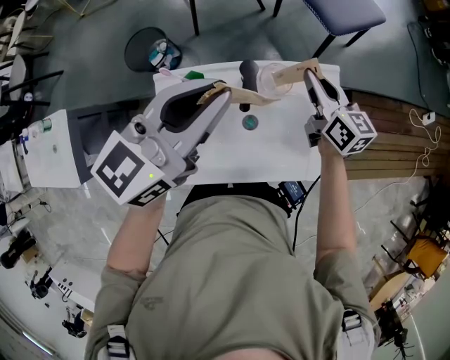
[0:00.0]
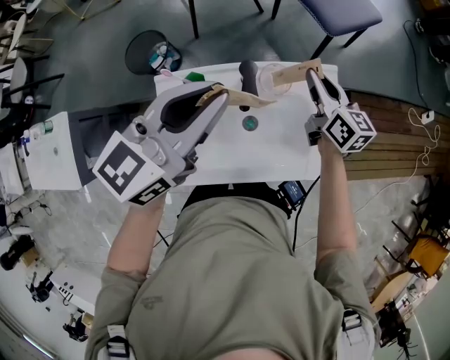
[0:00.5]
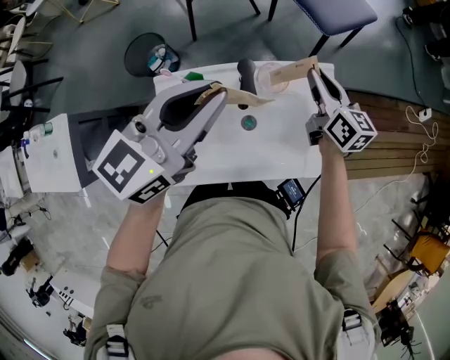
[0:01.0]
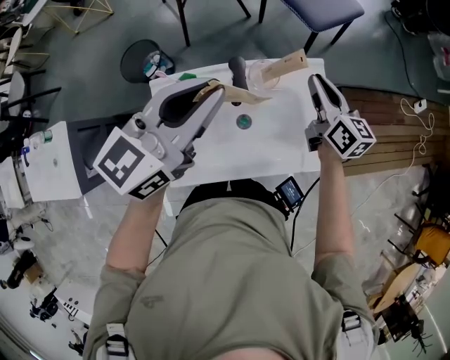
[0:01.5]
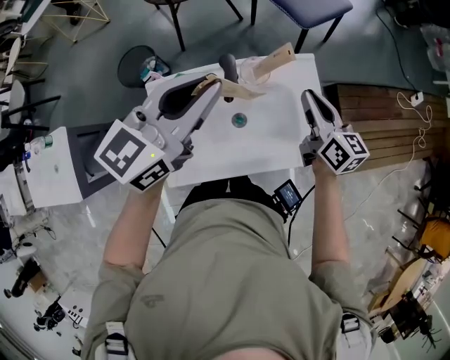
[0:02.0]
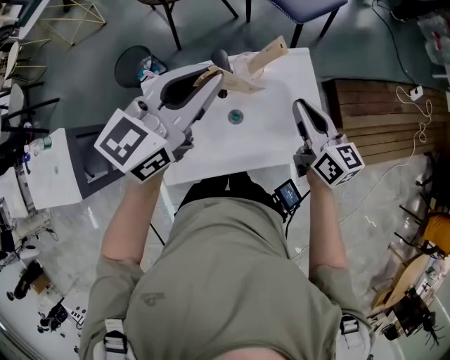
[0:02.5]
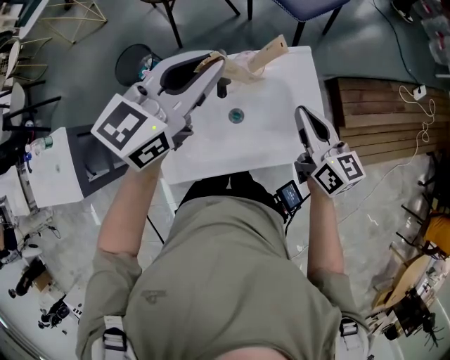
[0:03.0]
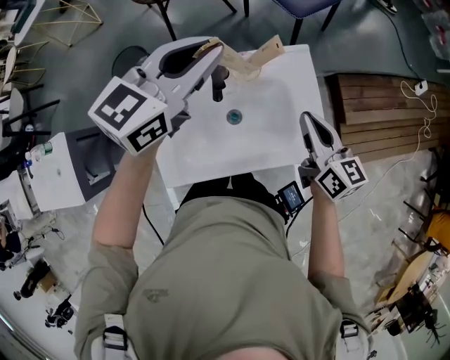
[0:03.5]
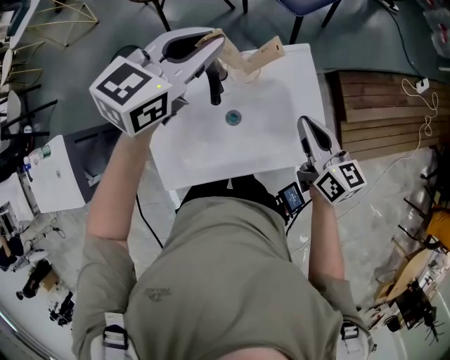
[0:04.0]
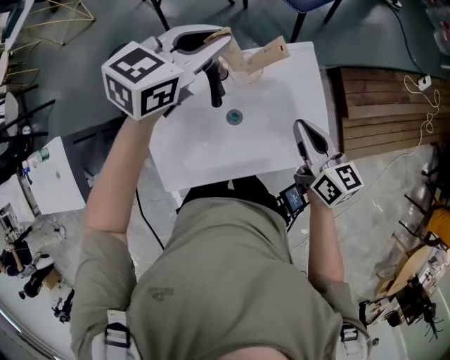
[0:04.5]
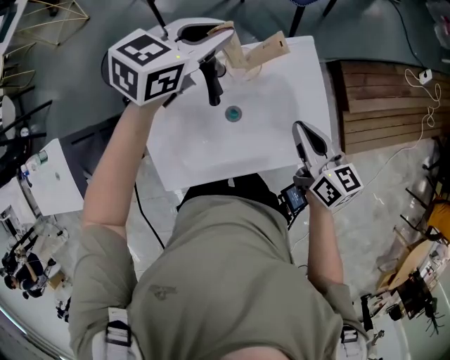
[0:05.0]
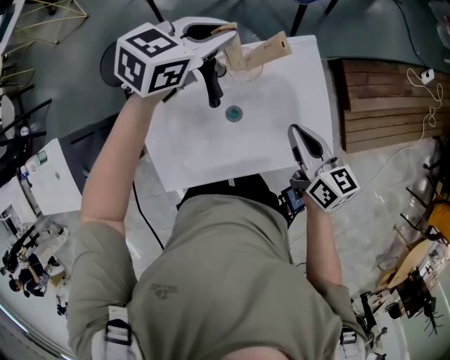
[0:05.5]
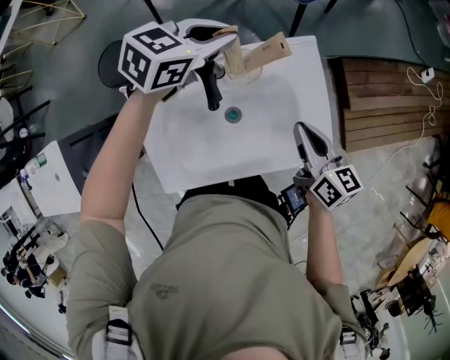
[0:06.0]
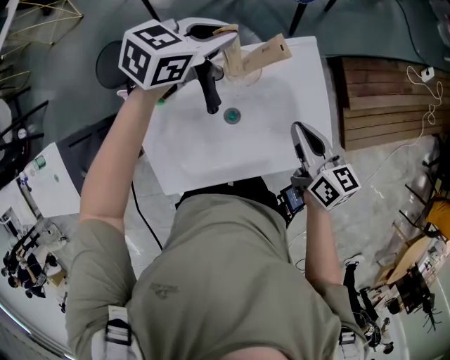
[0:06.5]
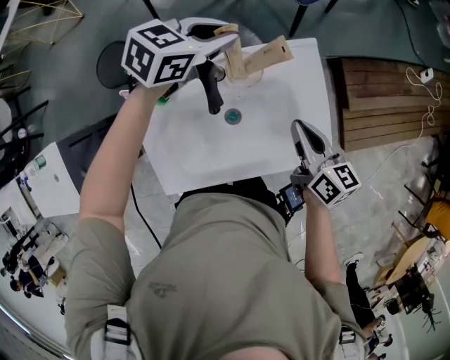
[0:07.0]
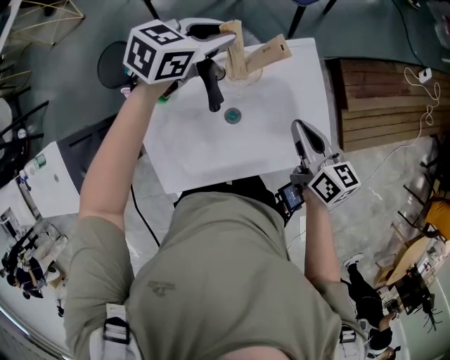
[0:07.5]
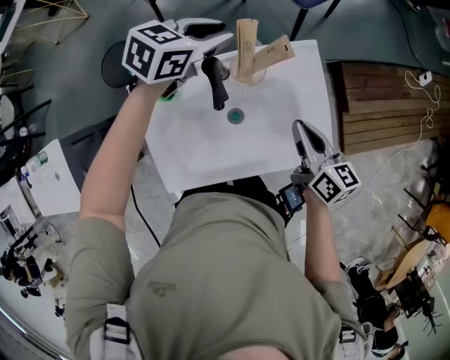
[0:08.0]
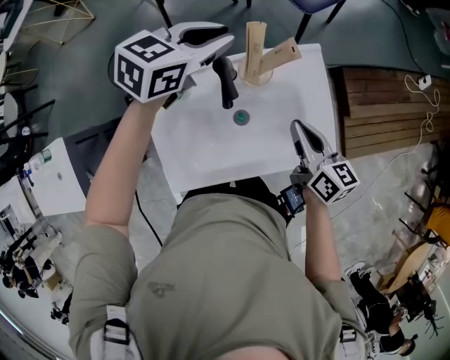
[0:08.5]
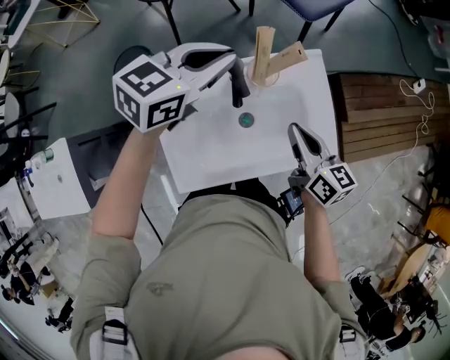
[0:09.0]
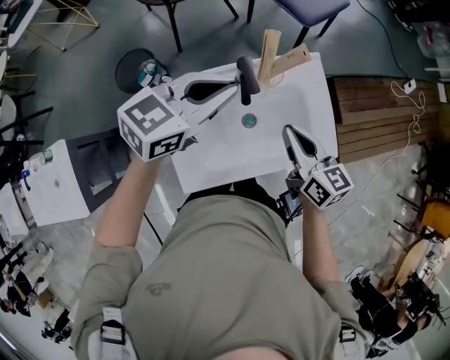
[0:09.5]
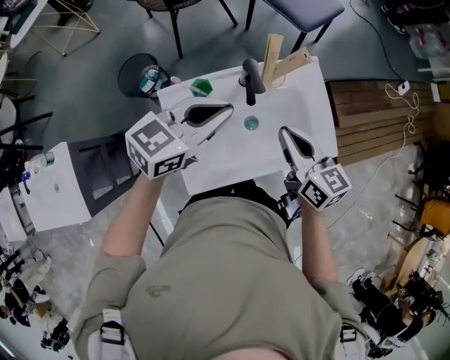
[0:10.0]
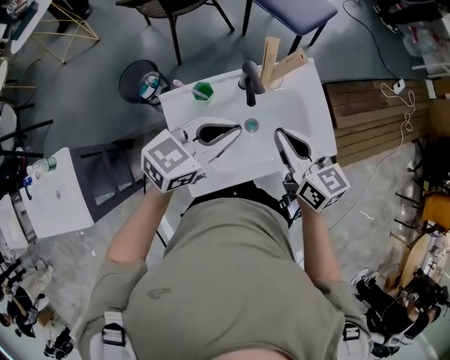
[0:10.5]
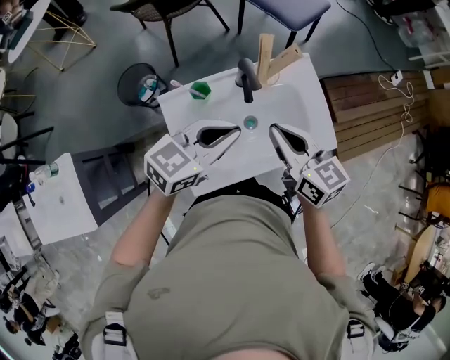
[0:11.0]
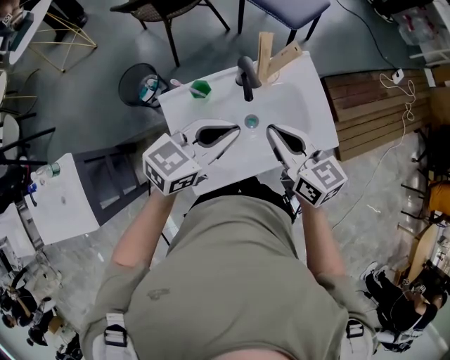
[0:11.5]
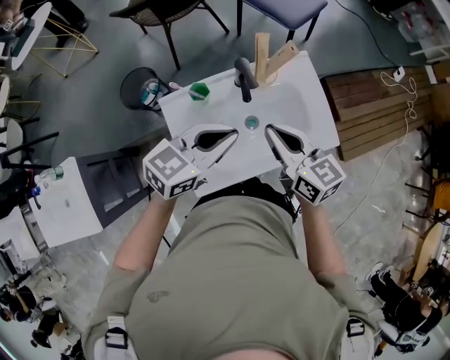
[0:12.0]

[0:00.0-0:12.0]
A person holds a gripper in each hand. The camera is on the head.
0:00.0 to 0:02.0: The right gripper heads backward and to the right, covering approximately 10 cm.
0:02.0 to 0:04.0: The right gripper moves backward, roughly 5 cm; the left gripper goes roughly 10 cm forward.
0:04.0 to 0:06.0: The left gripper travels downward and forward by about 15 cm, while the right gripper moves downward, approximately 5 cm.
0:06.0 to 0:08.0: The grippers stay close to where they were, moving slightly.
0:08.0 to 0:10.0: The left gripper travels backward and upward by roughly 25 cm, while the right gripper moves to the left, upward and backward, roughly 15 cm.
0:10.0 to 0:12.0: The left gripper moves backward, approximately 5 cm.

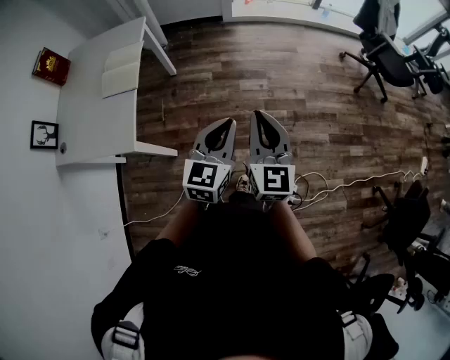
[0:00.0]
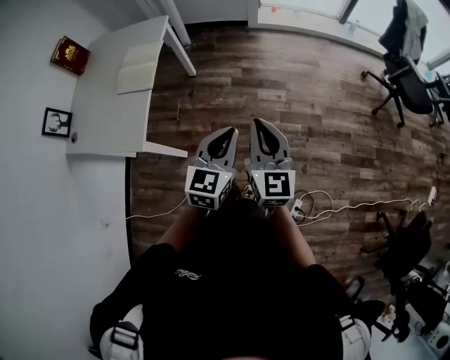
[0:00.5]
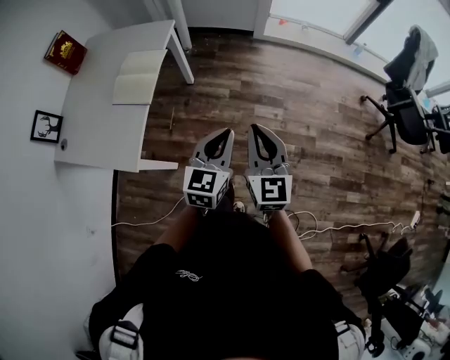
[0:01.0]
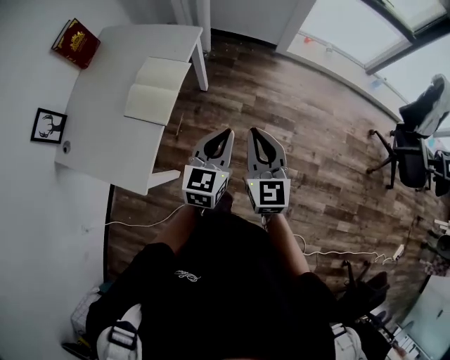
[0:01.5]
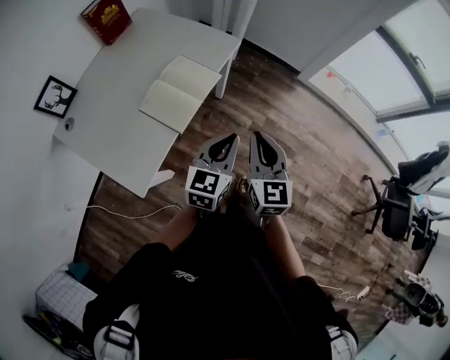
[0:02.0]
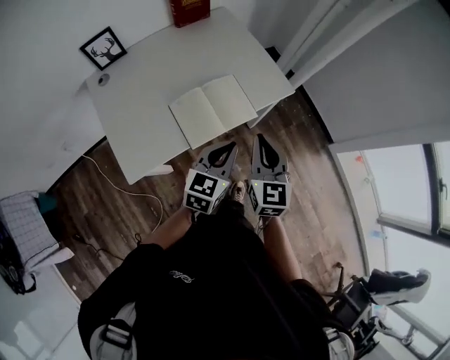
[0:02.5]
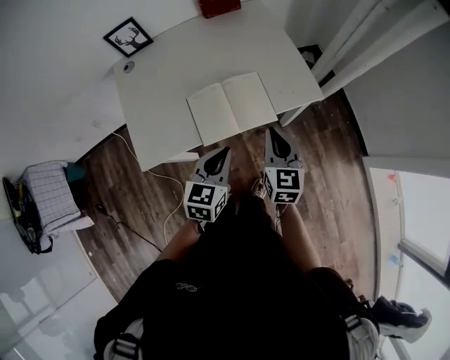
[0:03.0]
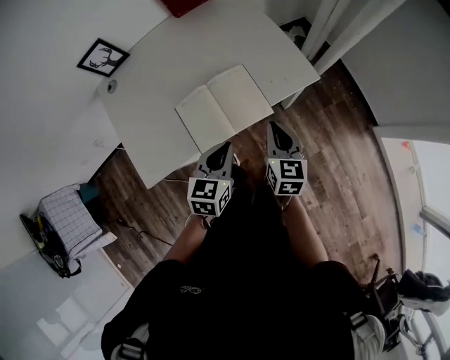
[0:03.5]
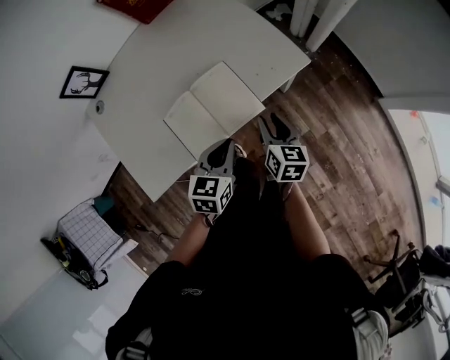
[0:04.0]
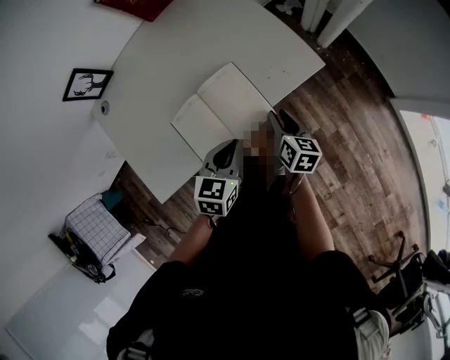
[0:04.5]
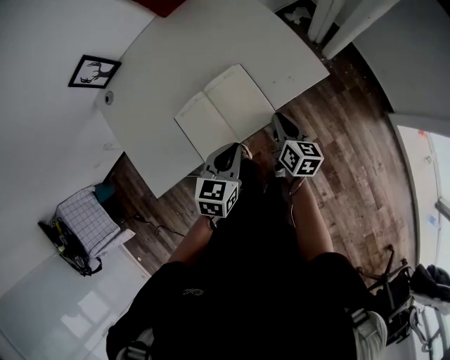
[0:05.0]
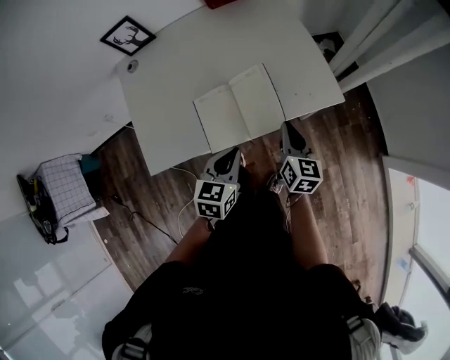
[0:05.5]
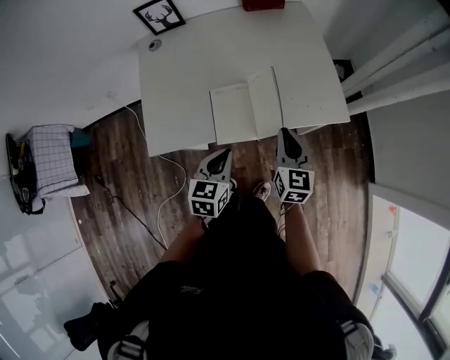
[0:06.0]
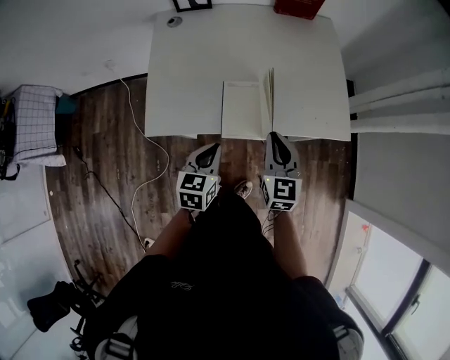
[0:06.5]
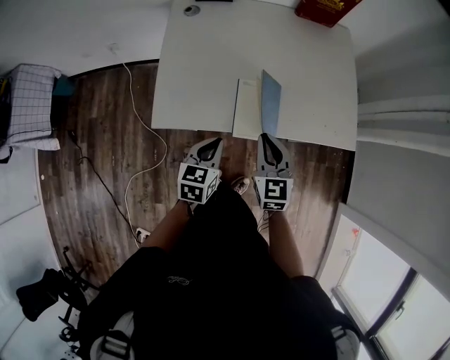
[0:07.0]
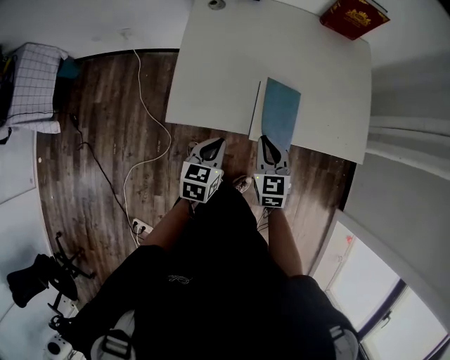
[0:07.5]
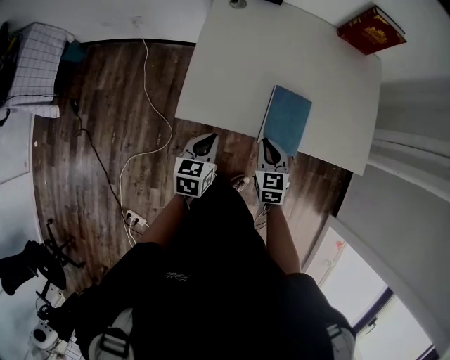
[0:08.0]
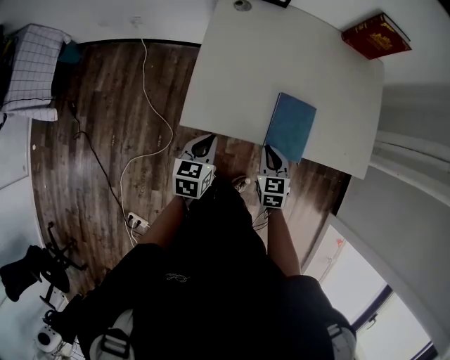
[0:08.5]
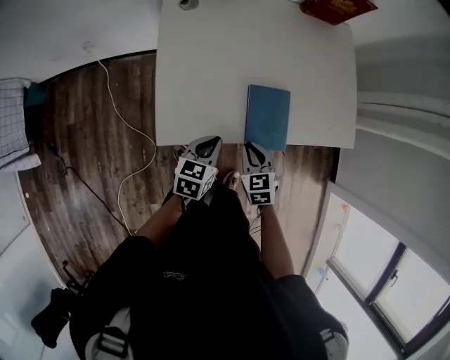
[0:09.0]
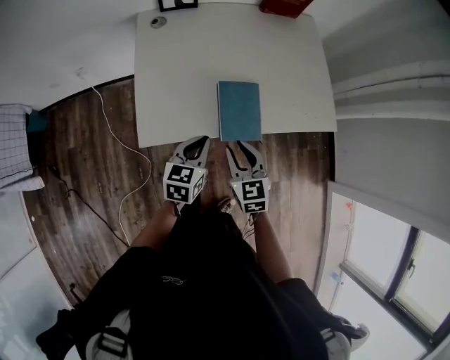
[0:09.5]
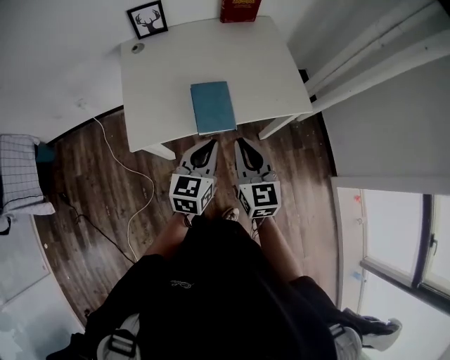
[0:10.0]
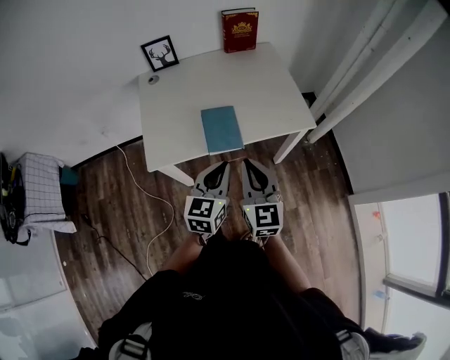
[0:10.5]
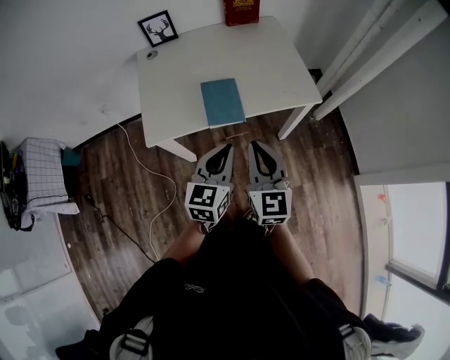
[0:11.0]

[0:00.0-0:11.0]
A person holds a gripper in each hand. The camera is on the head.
0:00.0 to 0:02.0: The right gripper moves some 40 cm, and swivels roughly 30 degrees, while the left gripper changes place by approximately 40 cm, and rotates some 30 degrees.
0:02.0 to 0:03.5: The right gripper ends up about 30 cm from where it was, and rotates approximately 30 degrees. Meanwhile the left gripper shifts by about 20 cm, and changes its angle by roughly 40 degrees.
0:03.5 to 0:05.5: The right gripper goes downward and returns, about 10 cm each way, and opens, then closes once more.
0:05.5 to 0:07.5: Both grippers move to the left, some 20 cm. The left gripper changes its angle by about 30 degrees. The right gripper rolls counterclockwise, seen from behind, by about 40 degrees.
0:07.5 to 0:09.0: The left gripper moves forward, some 5 cm, and moves some 10 cm to the left and comes back, while the right gripper heads downward, covering some 5 cm.
0:09.0 to 0:11.0: The right gripper moves upward, to the right and backward, roughly 35 cm, points its fingers about 40 degrees further upward, and opens and closes again. Meanwhile the left gripper moves to the right, upward and backward, about 30 cm, and changes its angle by roughly 30 degrees.

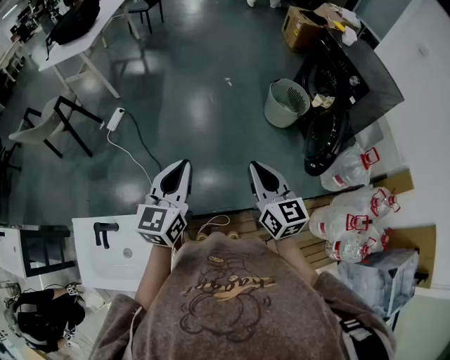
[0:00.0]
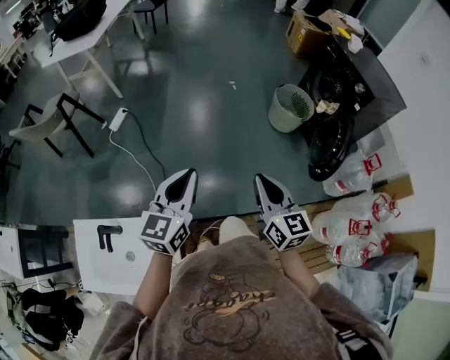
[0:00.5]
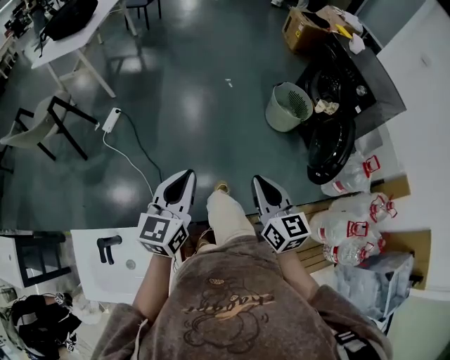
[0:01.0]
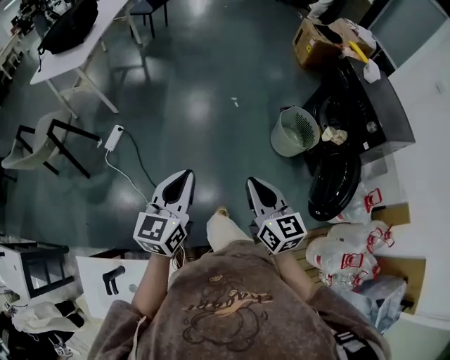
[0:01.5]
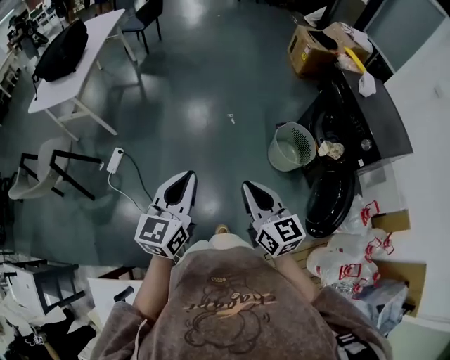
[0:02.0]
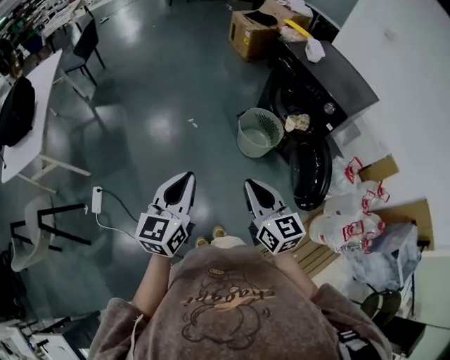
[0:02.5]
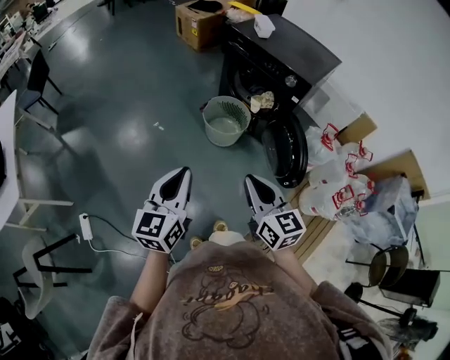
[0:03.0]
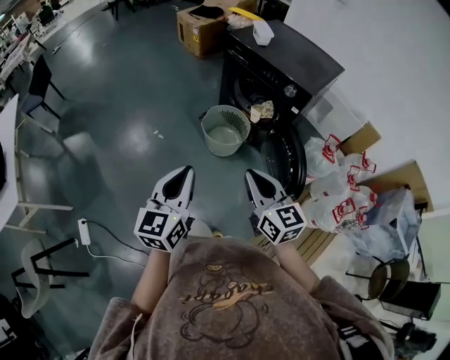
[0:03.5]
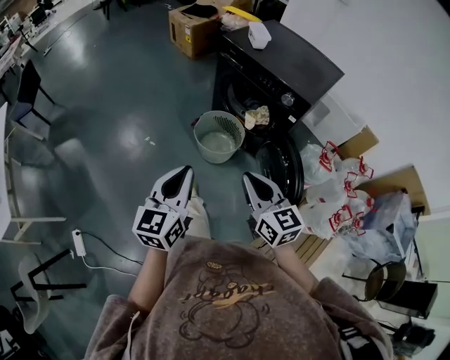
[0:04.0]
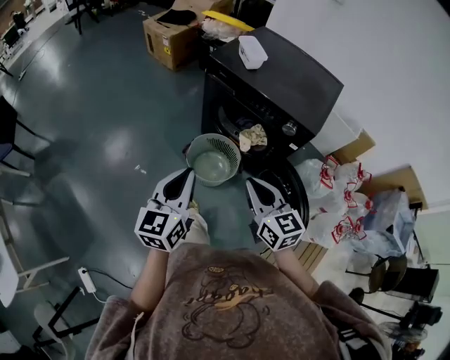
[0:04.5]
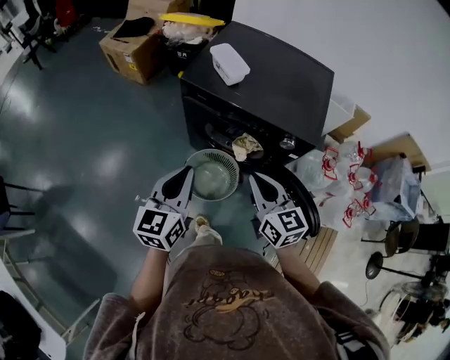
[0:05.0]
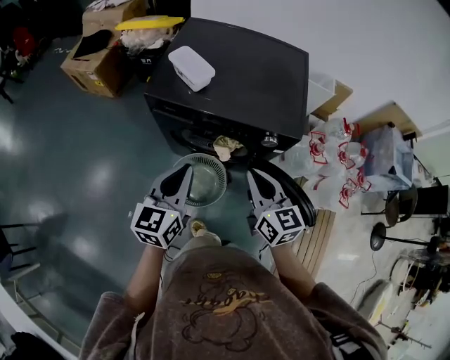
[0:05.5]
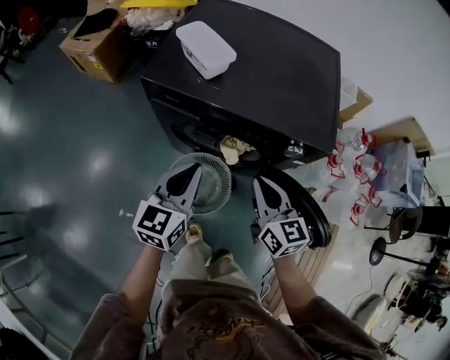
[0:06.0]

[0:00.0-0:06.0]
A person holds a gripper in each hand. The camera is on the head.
0:00.0 to 0:02.0: Both grippers travel together forward, approximately 30 cm.
0:02.0 to 0:04.0: The left gripper shifts by approximately 30 cm, and turns by roughly 30 degrees, while the right gripper changes place by roughly 30 cm, and changes its angle by some 30 degrees.
0:04.0 to 0:06.0: The two grippers travel together, about 50 cm. The left gripper swivels roughly 40 degrees, while the right gripper changes its angle by roughly 40 degrees.
